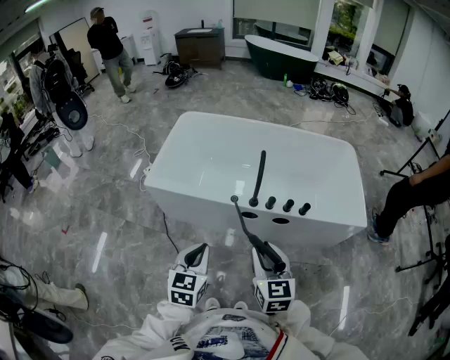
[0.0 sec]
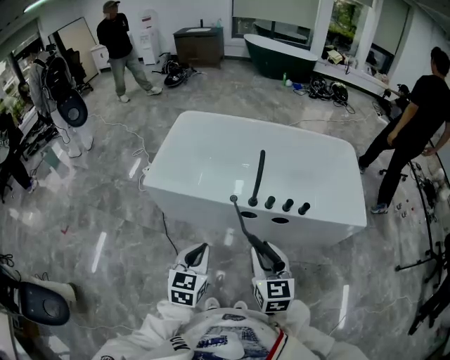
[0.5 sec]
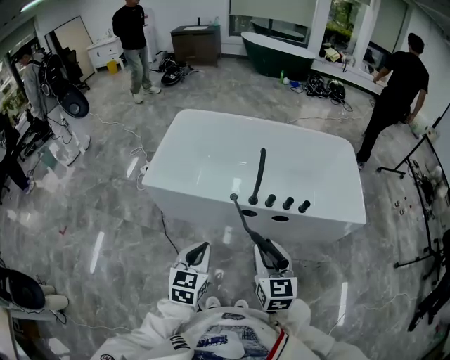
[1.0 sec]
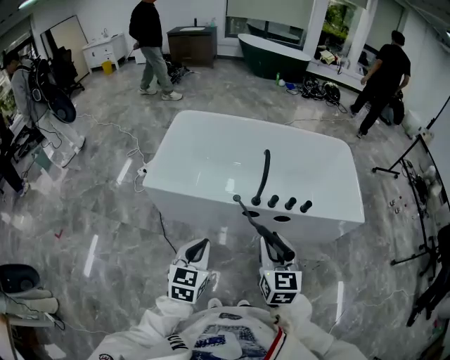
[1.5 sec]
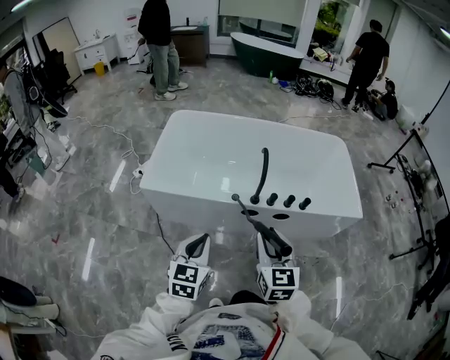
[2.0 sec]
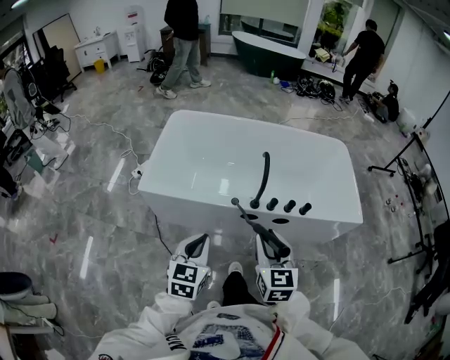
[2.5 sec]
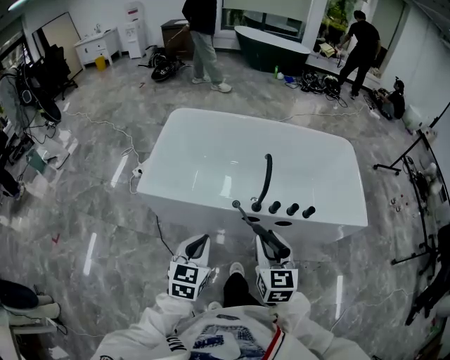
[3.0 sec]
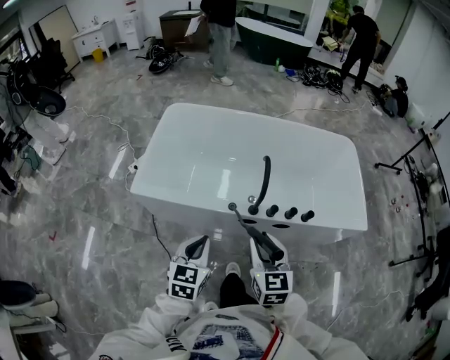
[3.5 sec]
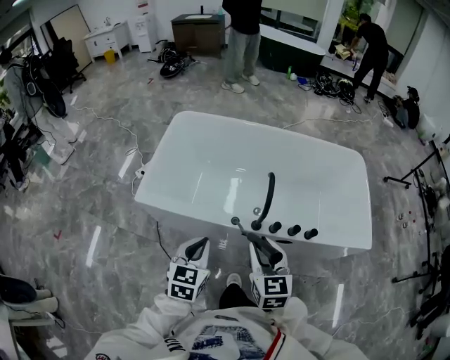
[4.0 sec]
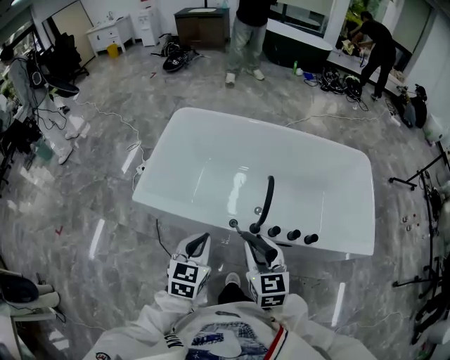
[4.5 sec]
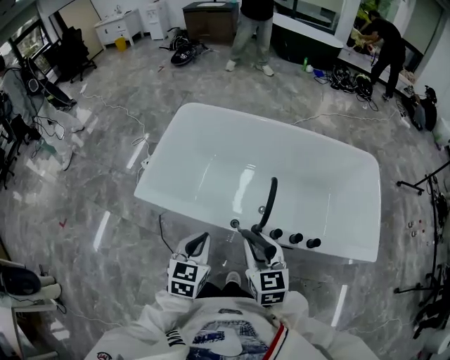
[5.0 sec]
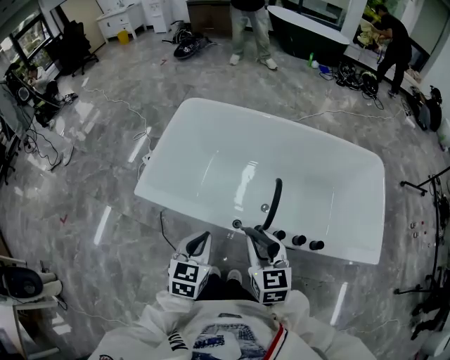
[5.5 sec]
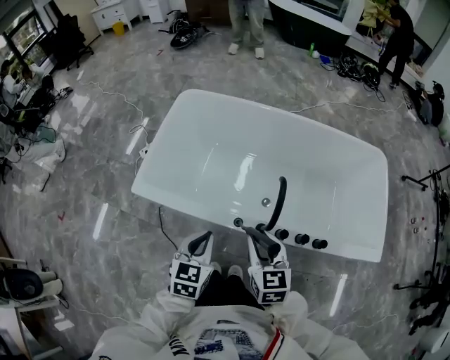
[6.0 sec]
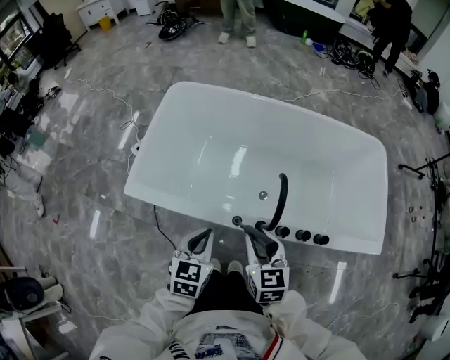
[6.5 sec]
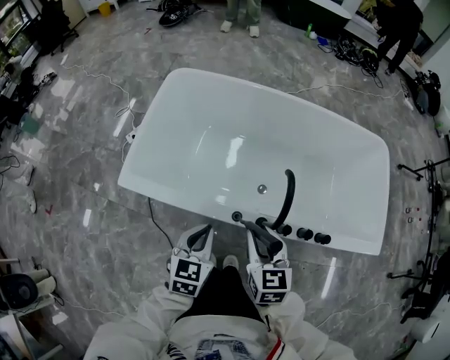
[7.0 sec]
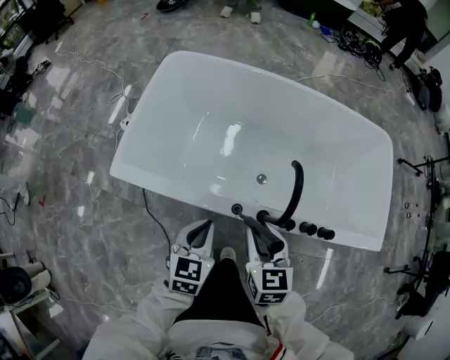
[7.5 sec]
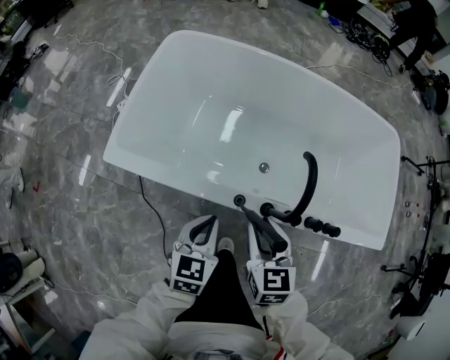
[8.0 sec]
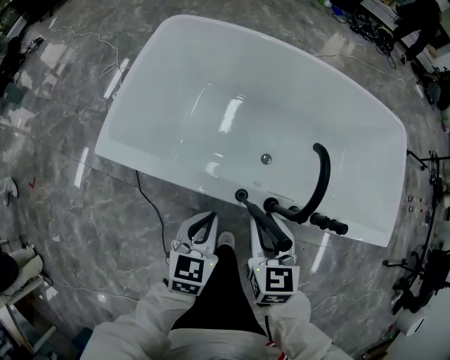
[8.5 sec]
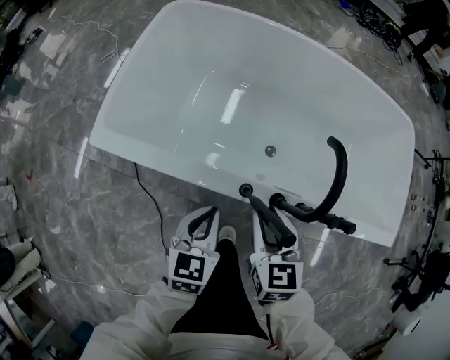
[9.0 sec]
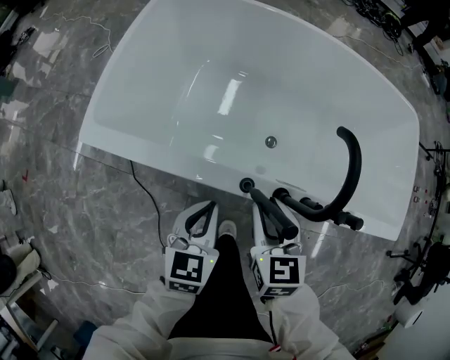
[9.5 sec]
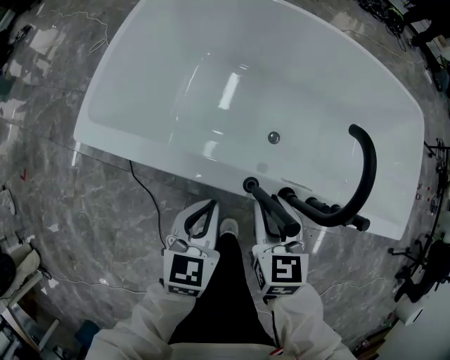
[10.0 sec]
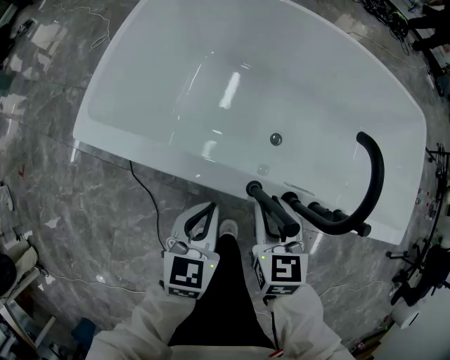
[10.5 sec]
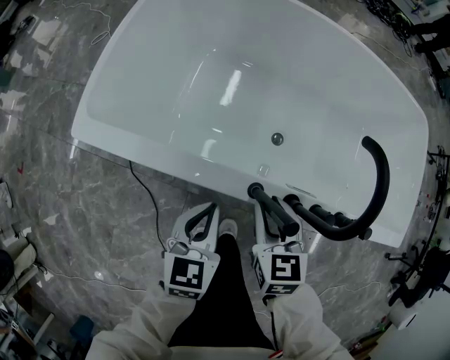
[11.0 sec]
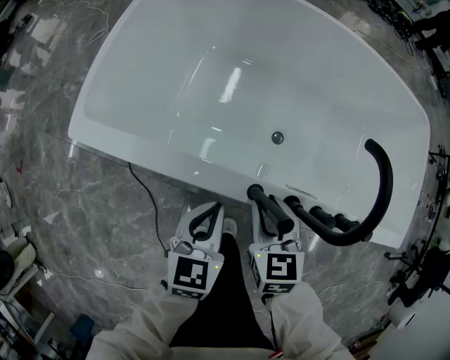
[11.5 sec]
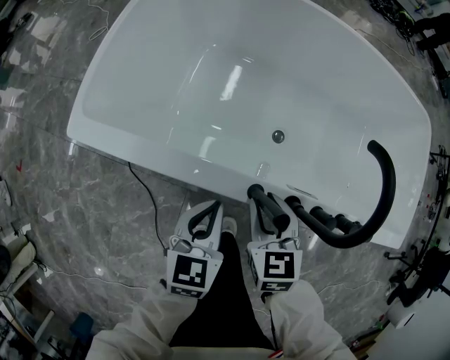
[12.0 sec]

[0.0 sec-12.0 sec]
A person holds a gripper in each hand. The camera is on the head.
0.0 sec to 2.0 sec: The right gripper ends up roughly 5 cm from where it was. Meanwhile the left gripper moves to the left, about 5 cm.
2.0 sec to 4.0 sec: Both grippers move forward, about 15 cm.
4.0 sec to 6.0 sec: The two grippers go approximately 10 cm forward and downward.
6.0 sec to 8.0 sec: The grippers both shift downward by roughly 10 cm.
8.0 sec to 10.0 sec: Both grippers move downward, roughly 10 cm.
10.0 sec to 12.0 sec: The right gripper shifts by some 5 cm.

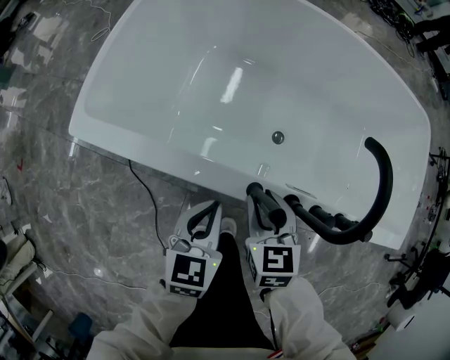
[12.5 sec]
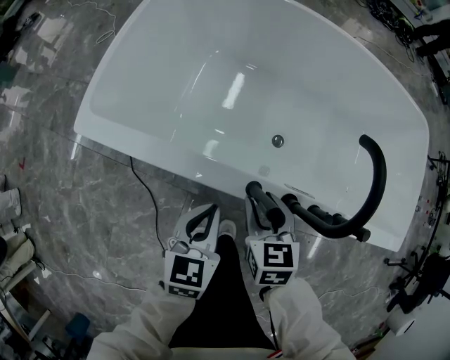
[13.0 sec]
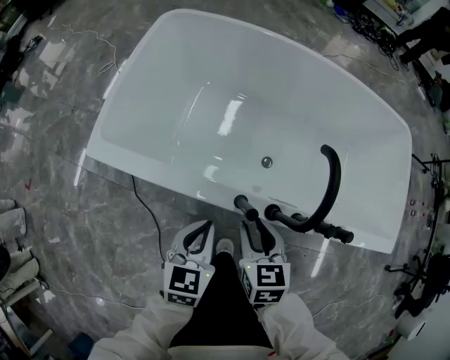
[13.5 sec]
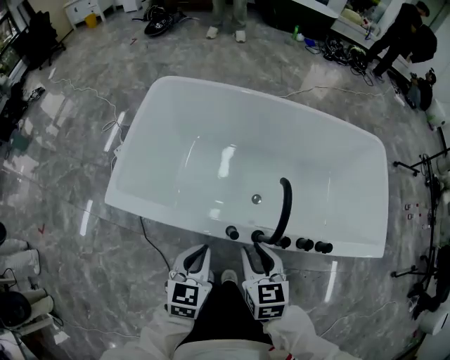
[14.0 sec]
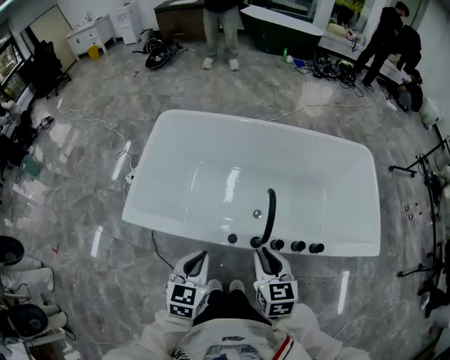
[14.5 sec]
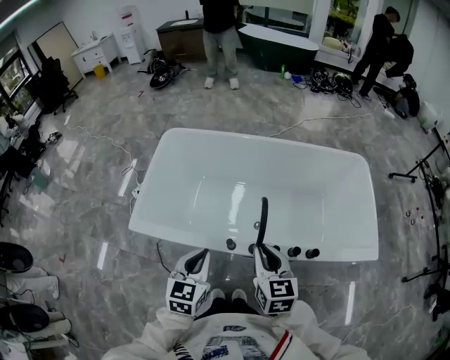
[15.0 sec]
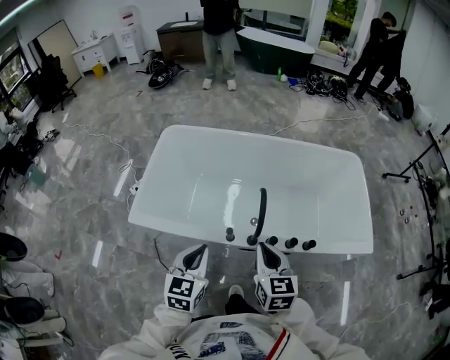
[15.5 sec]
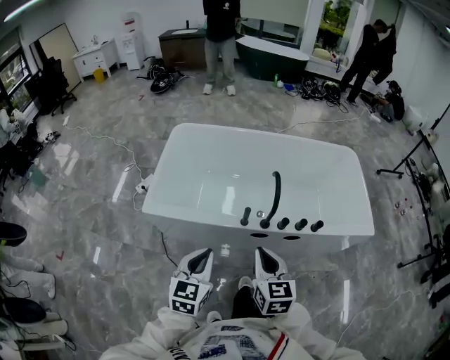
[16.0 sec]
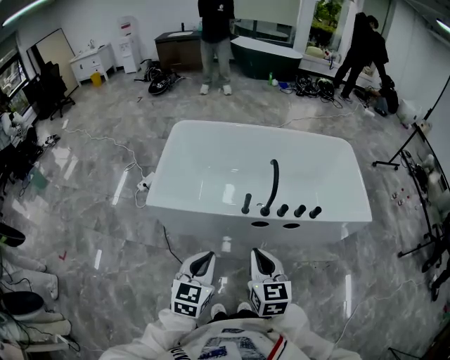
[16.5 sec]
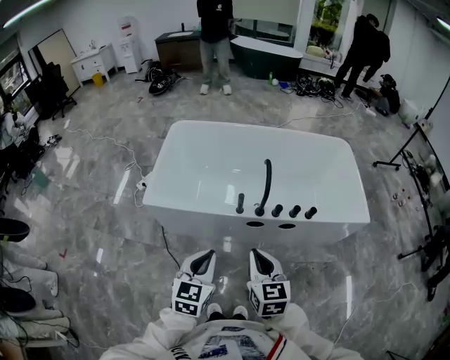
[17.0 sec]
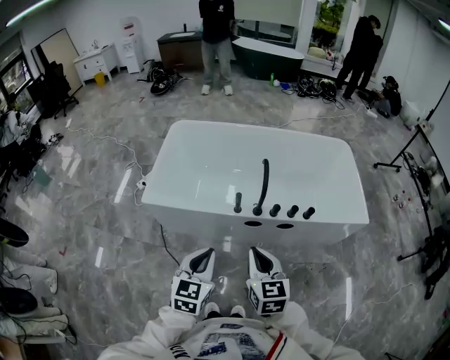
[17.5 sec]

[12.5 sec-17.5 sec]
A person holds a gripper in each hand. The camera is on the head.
12.5 sec to 15.0 sec: The grippers both shift upward by some 30 cm. The right gripper turns by about 20 degrees, and closes its fingers.
15.0 sec to 17.5 sec: The two grippers go approximately 25 cm backward.

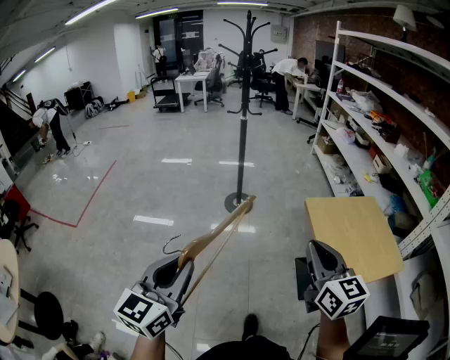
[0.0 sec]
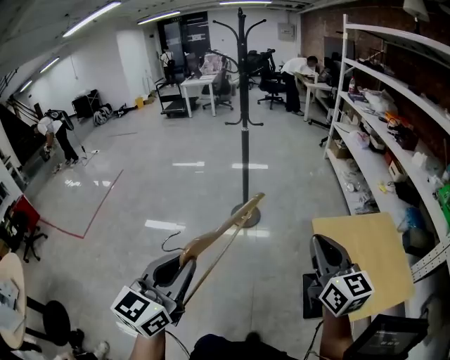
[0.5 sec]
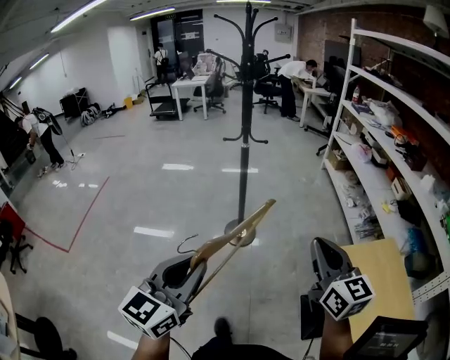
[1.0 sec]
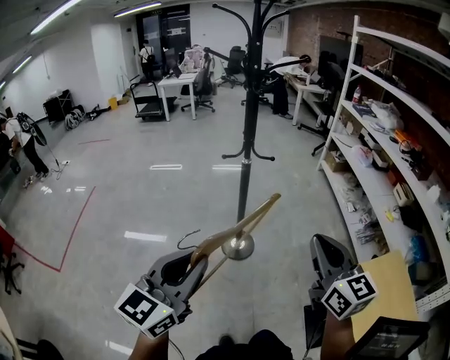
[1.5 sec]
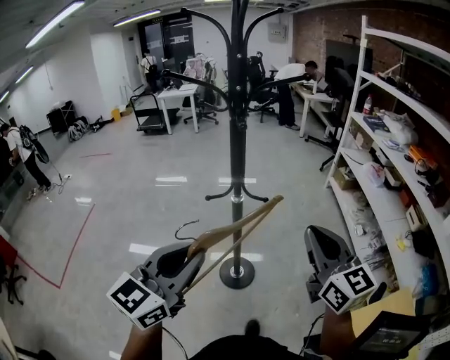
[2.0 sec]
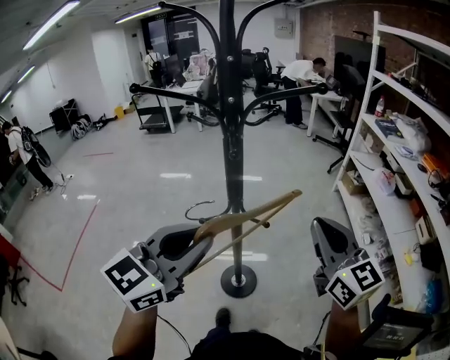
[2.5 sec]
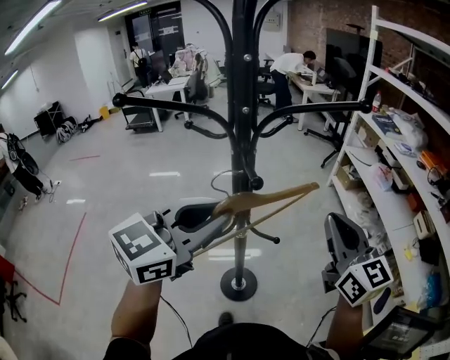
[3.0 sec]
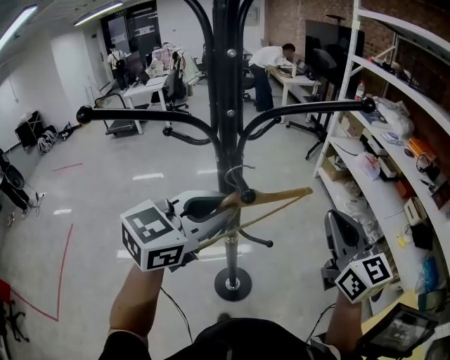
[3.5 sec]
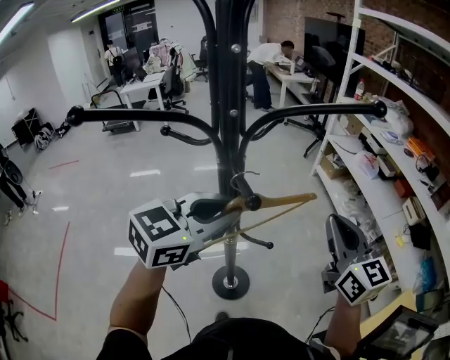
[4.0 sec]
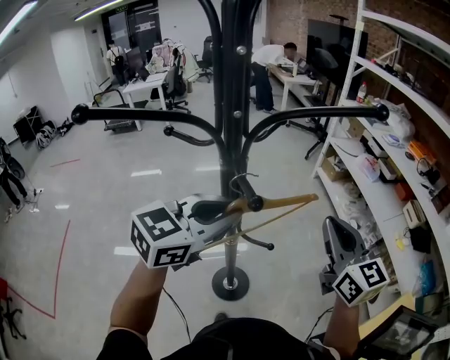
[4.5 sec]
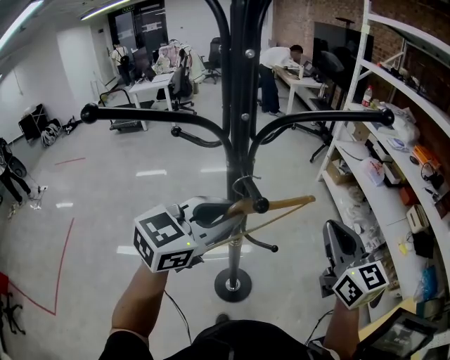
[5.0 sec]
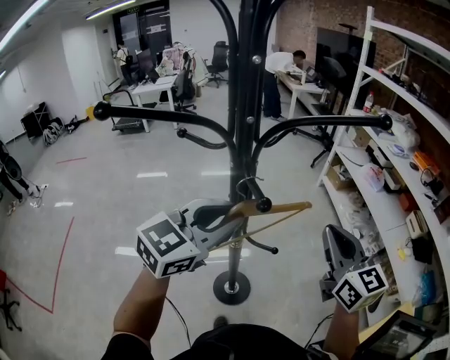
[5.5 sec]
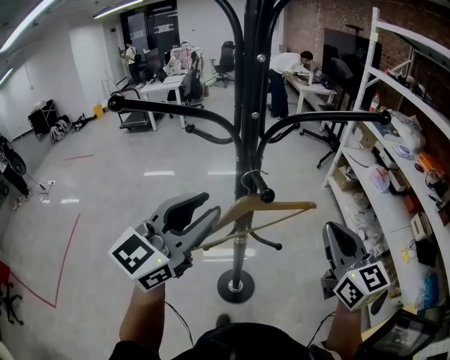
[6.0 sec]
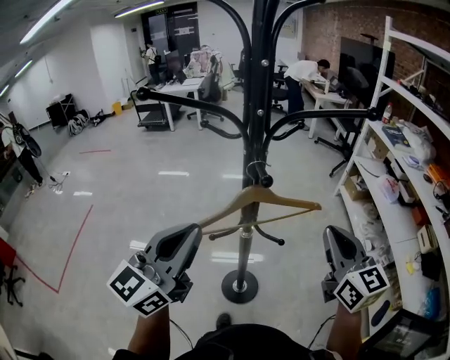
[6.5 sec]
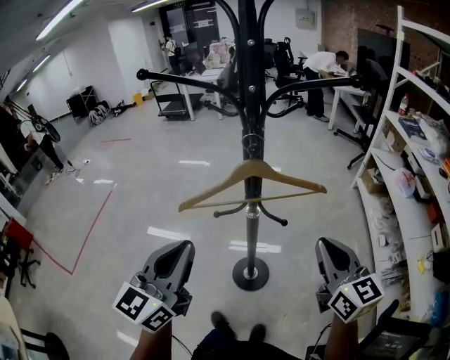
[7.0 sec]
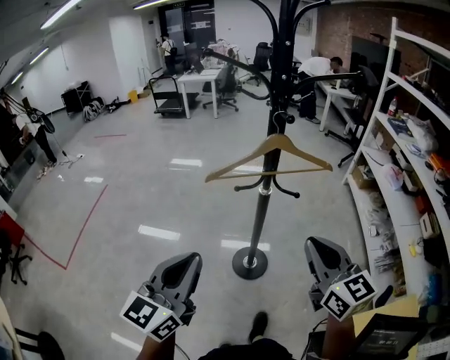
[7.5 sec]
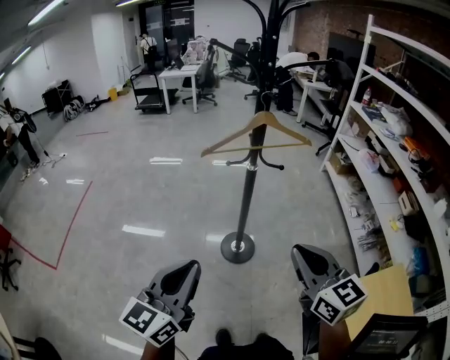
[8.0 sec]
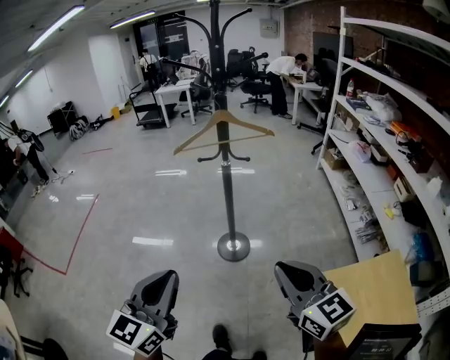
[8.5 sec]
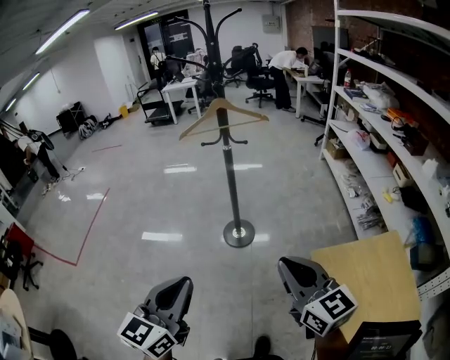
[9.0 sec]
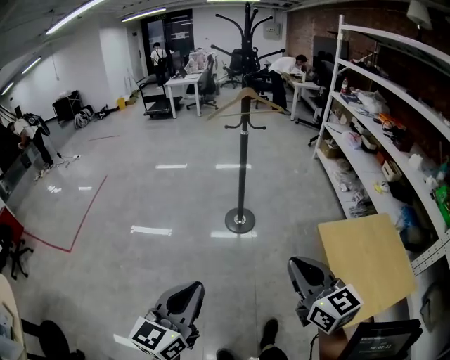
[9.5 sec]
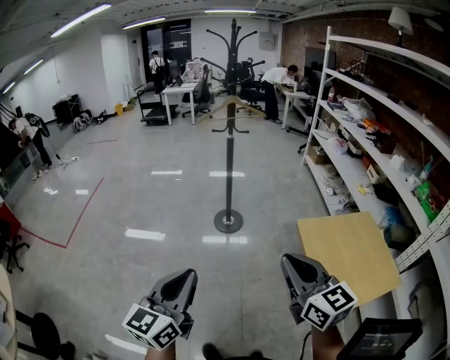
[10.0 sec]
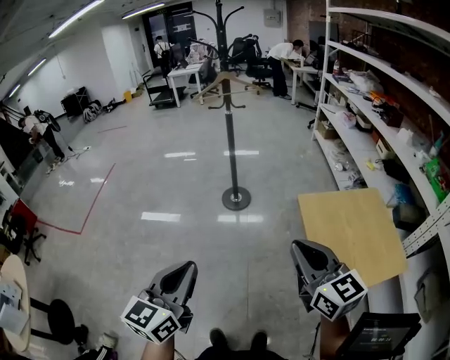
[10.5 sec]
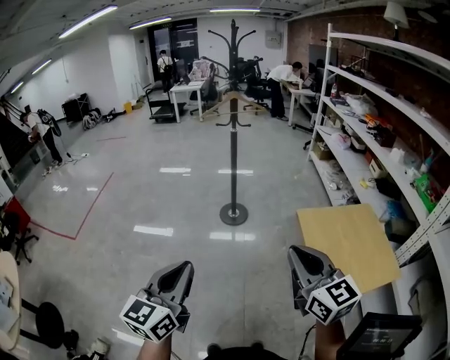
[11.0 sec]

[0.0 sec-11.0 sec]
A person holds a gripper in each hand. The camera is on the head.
0.0 sec to 2.0 sec: The pair of grippers is taken forward, about 70 cm.
2.0 sec to 3.5 sec: Both grippers travel together forward, approximately 25 cm. The left gripper turns by about 30 degrees.
3.5 sec to 5.5 sec: There are only small adjustments of the grippers.
5.5 sec to 7.5 sec: The right gripper shifts by about 20 cm. Meanwhile the left gripper ends up some 35 cm from where it was, and turns by approximately 40 degrees.
7.5 sec to 9.0 sec: Both grippers move backward, some 35 cm.
9.0 sec to 11.0 sec: Both grippers travel together backward, about 30 cm.
